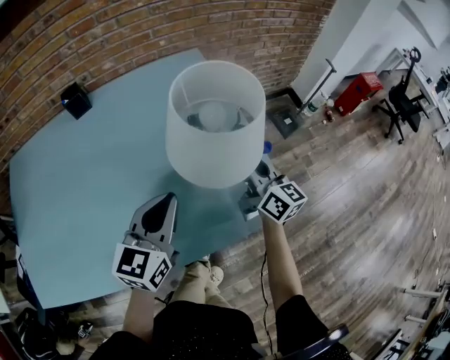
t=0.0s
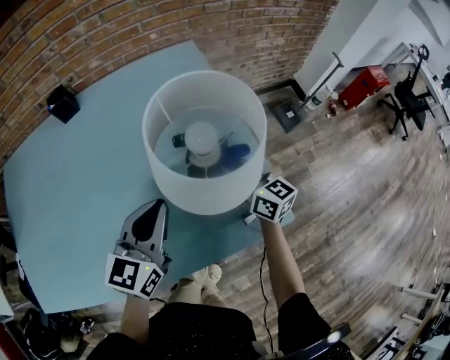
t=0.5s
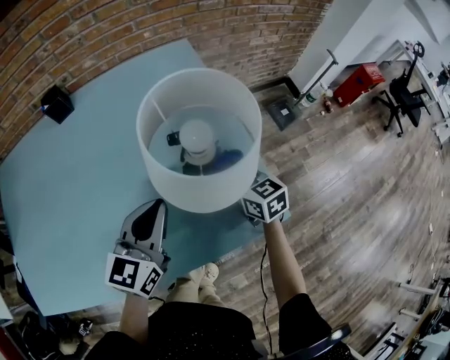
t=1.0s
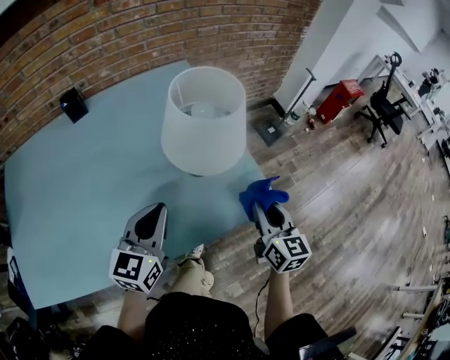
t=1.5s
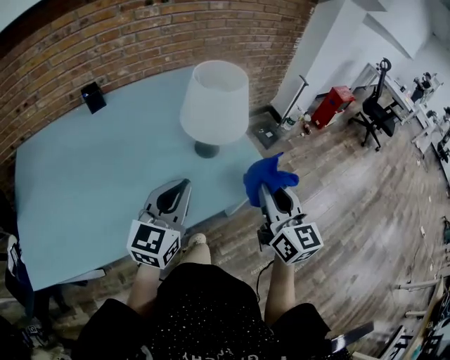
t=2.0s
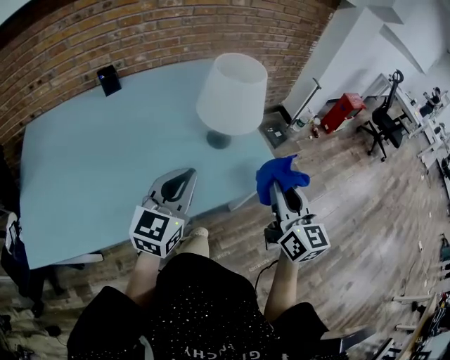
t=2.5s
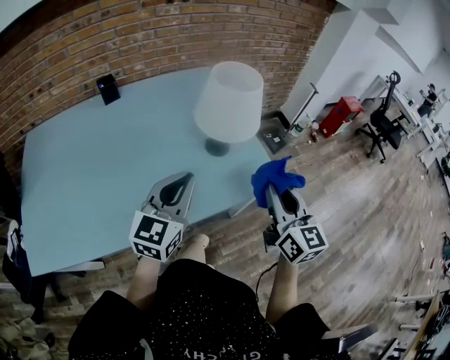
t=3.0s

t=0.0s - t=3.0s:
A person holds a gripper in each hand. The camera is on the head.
t=0.0s - t=1.5s: The right gripper goes approximately 15 cm backward, and swivels some 30 degrees. The left gripper changes place by some 5 cm.
t=1.5s - t=3.0s: The right gripper heads upward and backward, covering about 15 cm. Meanwhile the left gripper shifts roughly 10 cm backward and upward.

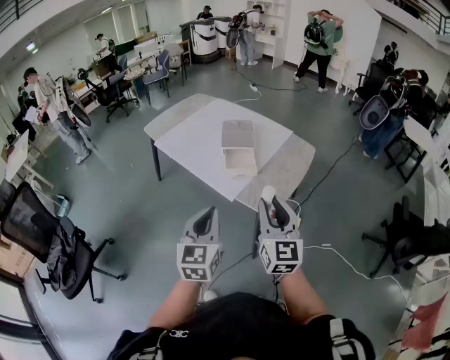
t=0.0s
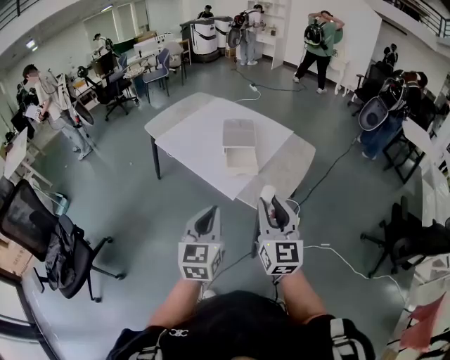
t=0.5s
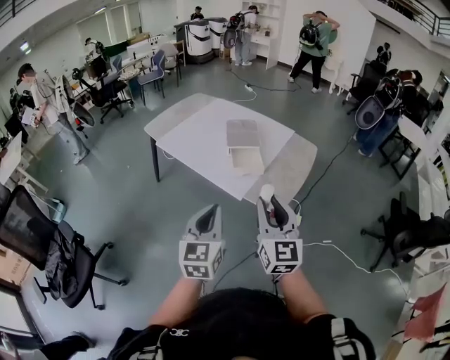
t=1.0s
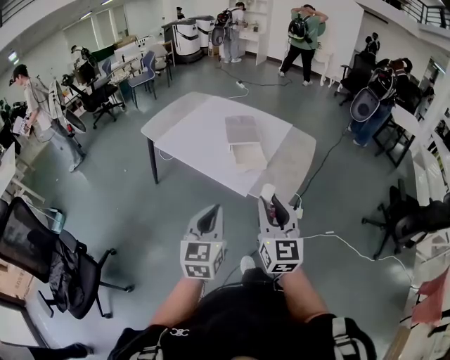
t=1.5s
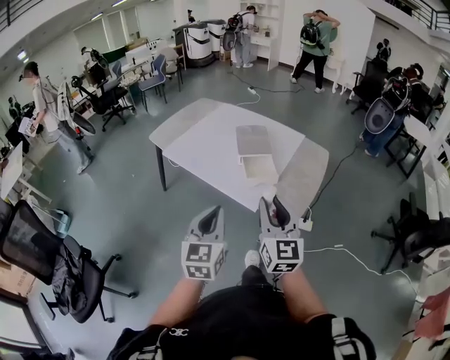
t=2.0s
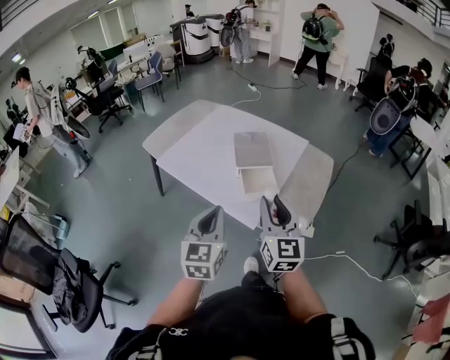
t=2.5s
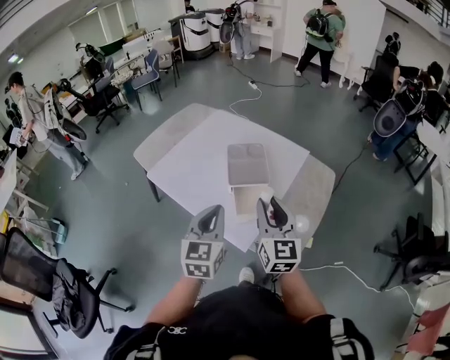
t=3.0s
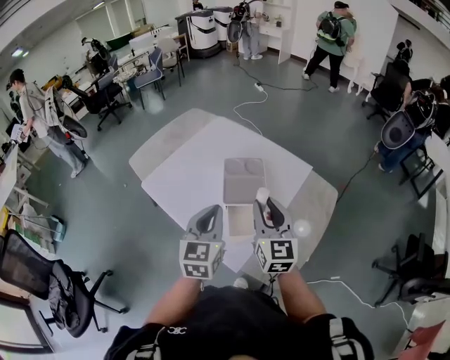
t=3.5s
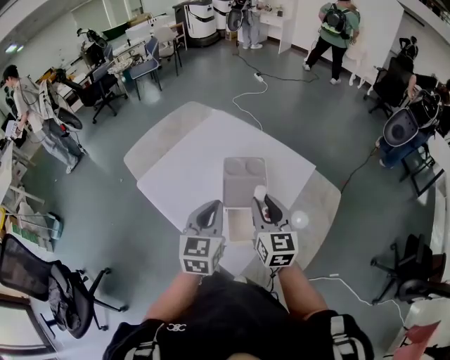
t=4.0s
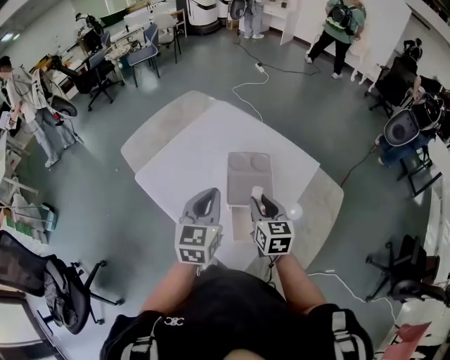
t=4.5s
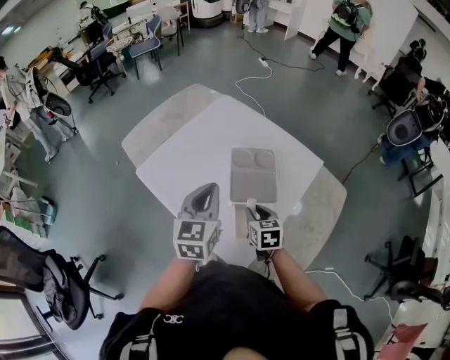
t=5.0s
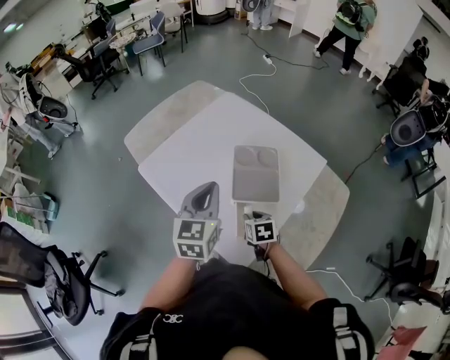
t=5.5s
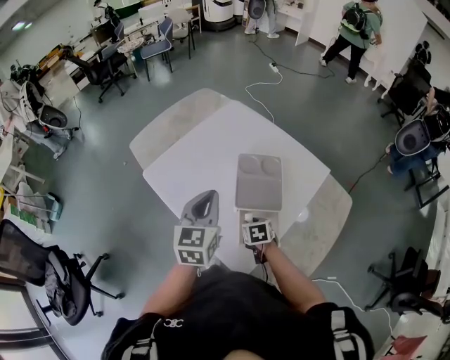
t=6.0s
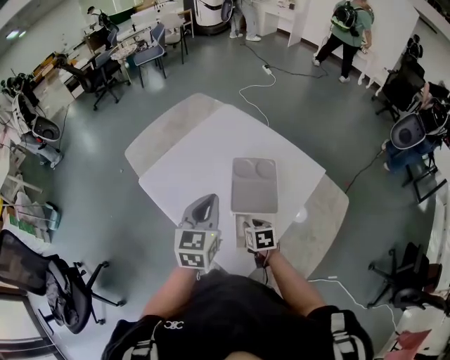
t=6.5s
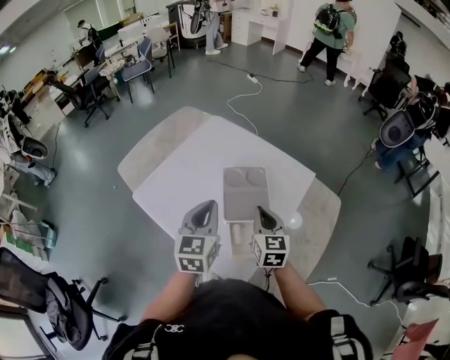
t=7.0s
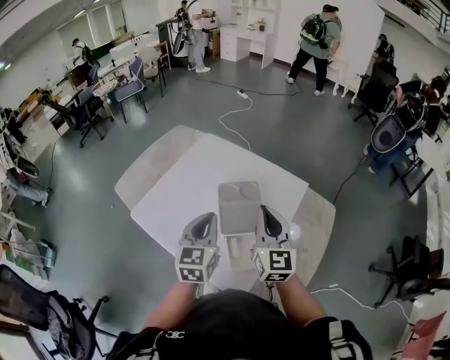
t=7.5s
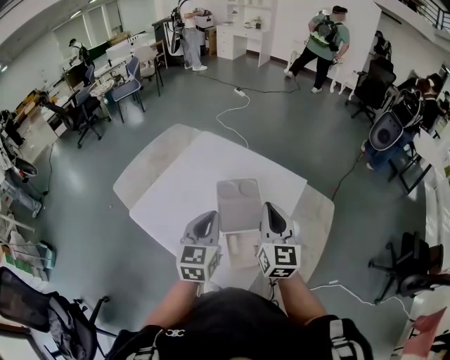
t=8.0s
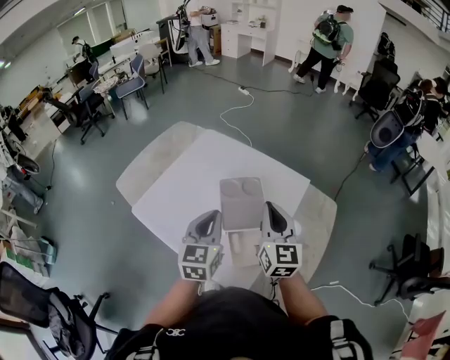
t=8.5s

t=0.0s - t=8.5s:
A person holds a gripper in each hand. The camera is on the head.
t=0.0s - t=2.0s: The two grippers go approximately 15 cm to the left and forward.
t=2.0s - t=4.0s: The two grippers travel together, forward, some 40 cm.
t=4.0s - t=6.5s: The left gripper goes some 5 cm forward; the right gripper moves downward, roughly 25 cm, and tilts its fingers about 40 degrees downward.
t=6.5s - t=8.5s: The right gripper travels upward by some 30 cm, tips its fingers upward by about 50 degrees, and closes.

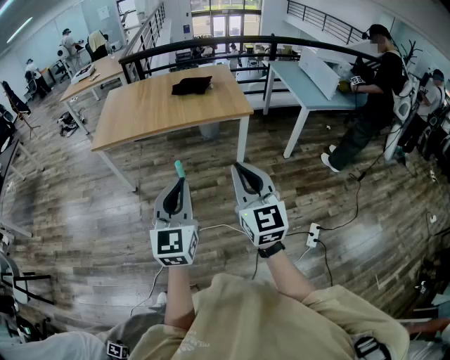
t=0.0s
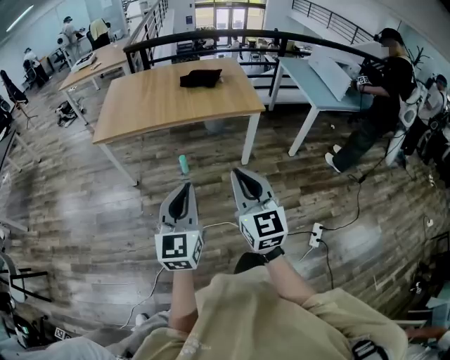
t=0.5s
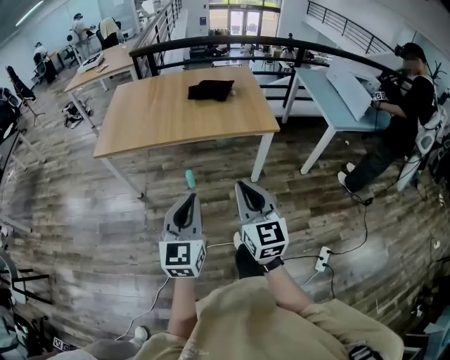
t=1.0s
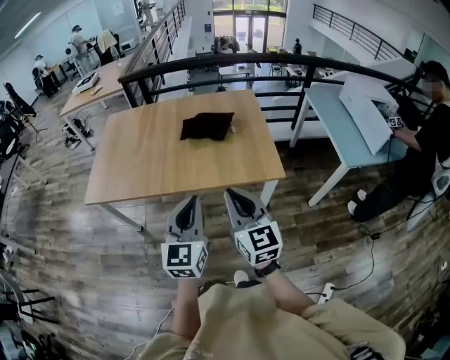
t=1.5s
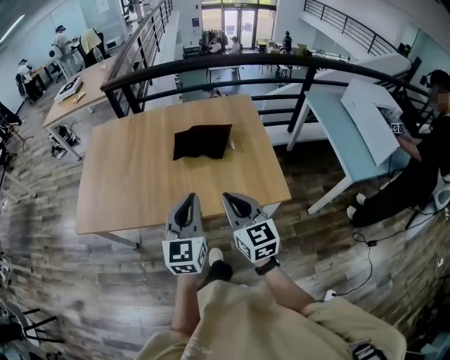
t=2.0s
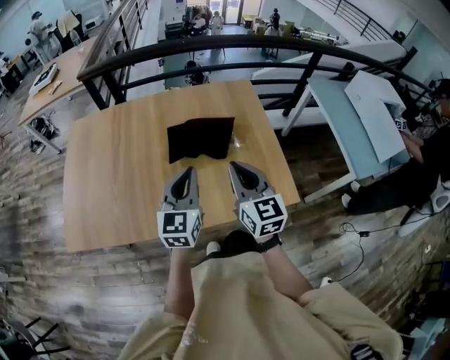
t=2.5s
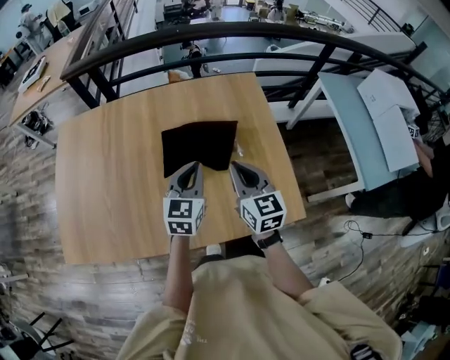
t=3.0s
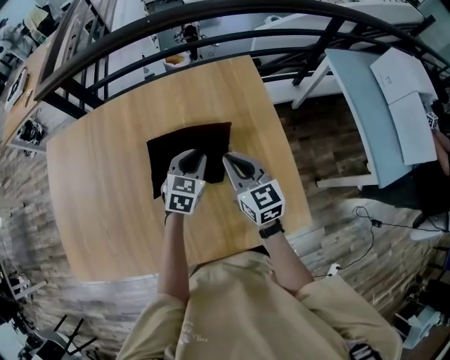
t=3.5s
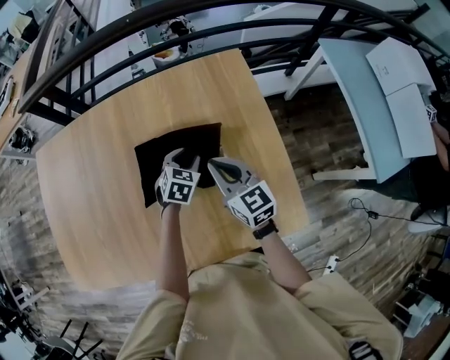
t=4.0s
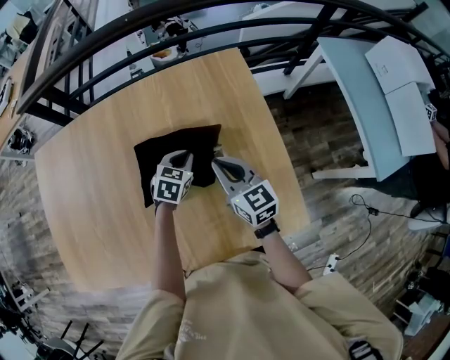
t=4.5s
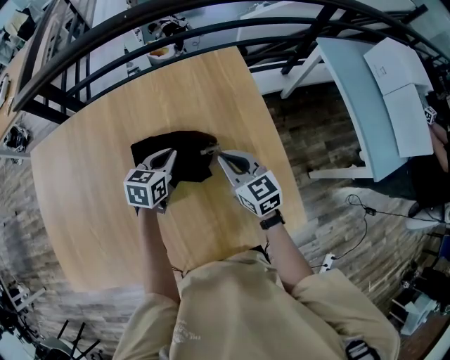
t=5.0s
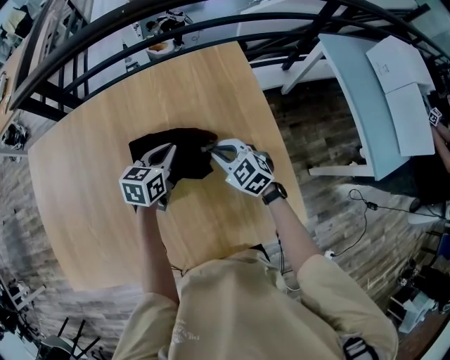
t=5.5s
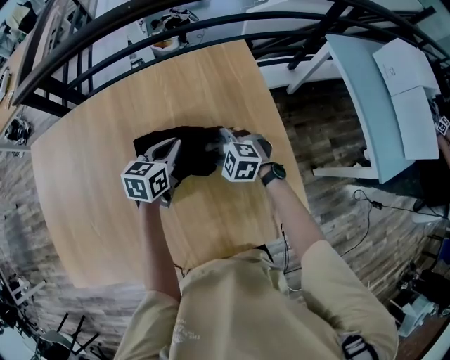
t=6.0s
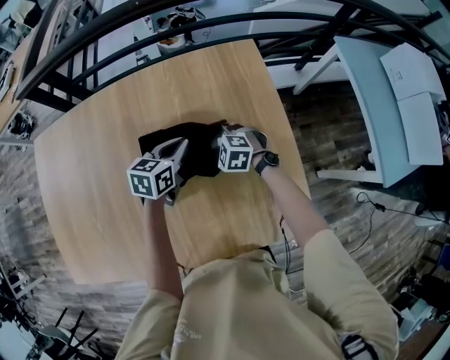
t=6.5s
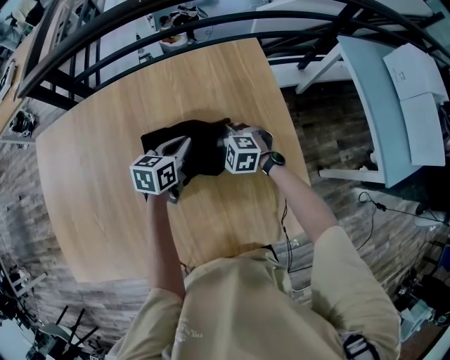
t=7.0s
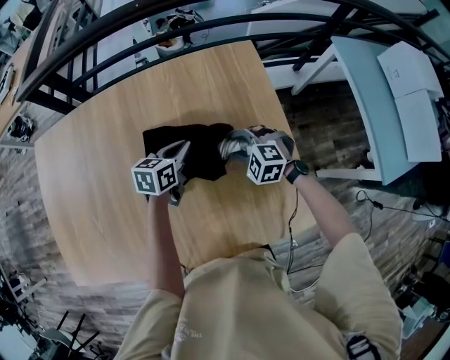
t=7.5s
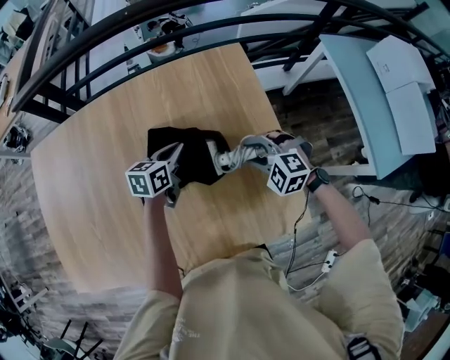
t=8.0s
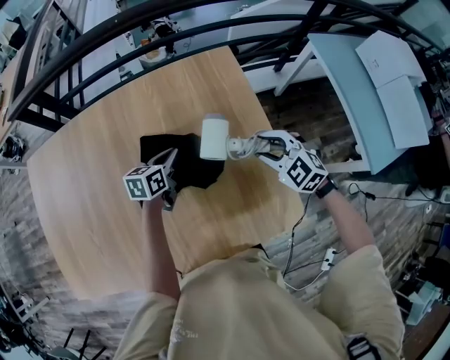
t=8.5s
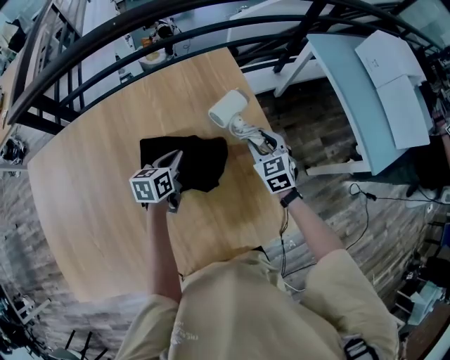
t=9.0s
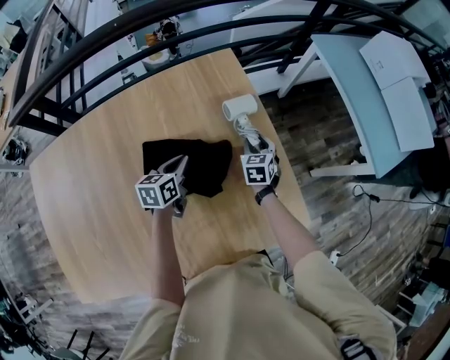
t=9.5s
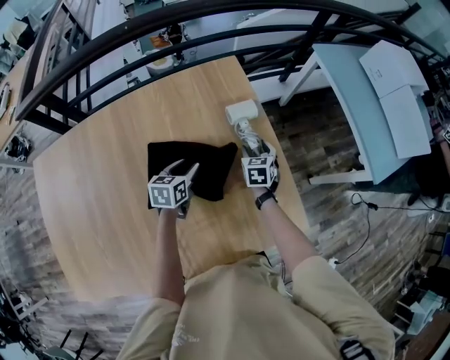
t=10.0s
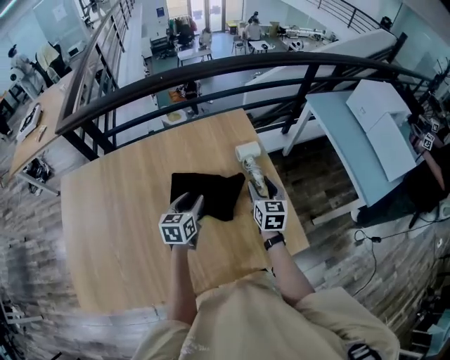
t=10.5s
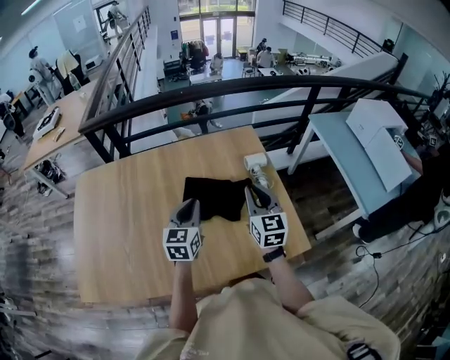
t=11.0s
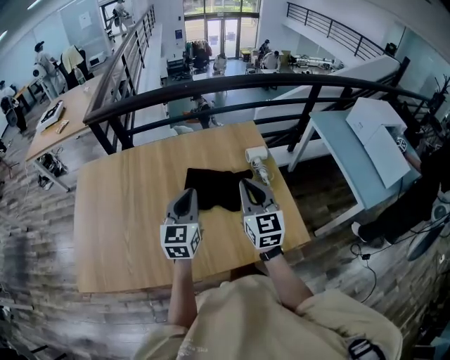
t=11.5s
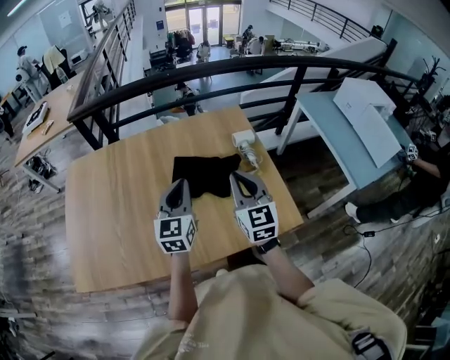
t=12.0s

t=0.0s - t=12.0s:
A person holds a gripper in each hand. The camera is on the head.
t=0.0s - t=2.0s: The pair of grippers is taken forward, about 70 cm.
t=2.0s - t=4.0s: The pair of grippers is taken forward, about 50 cm. The left gripper heads downward, covering some 30 cm, tips its fingers downward by about 50 degrees, and opens.
t=4.0s - t=6.0s: The right gripper moves downward, about 15 cm, tilts its fingers approximately 40 degrees downward, and opens its fingers; the left gripper moves upward, about 5 cm, turns by approximately 30 degrees, and closes up.
t=6.0s - t=8.0s: The right gripper is displaced to the right, upward and backward by some 15 cm.
t=8.0s - t=10.0s: The left gripper ends up roughly 5 cm from where it was, and opens its fingers. Meanwhile the right gripper moves roughly 15 cm, and rolls clockwise, seen from behind, by about 70 degrees.
t=10.0s - t=12.0s: The left gripper heads upward and backward, covering some 35 cm, tilts its fingers about 30 degrees upward, and closes its fingers, while the right gripper heads upward, backward and to the left, covering roughly 40 cm, tilts its fingers some 40 degrees upward, and closes up.

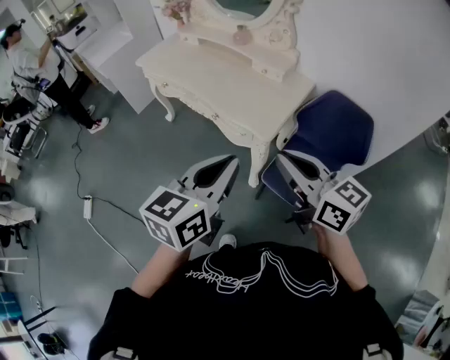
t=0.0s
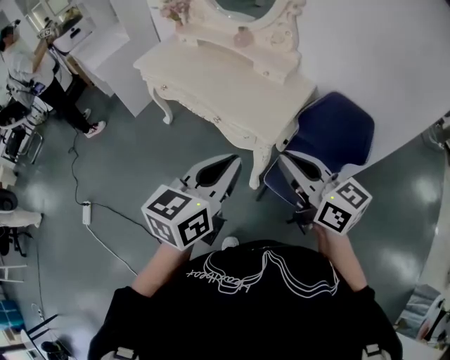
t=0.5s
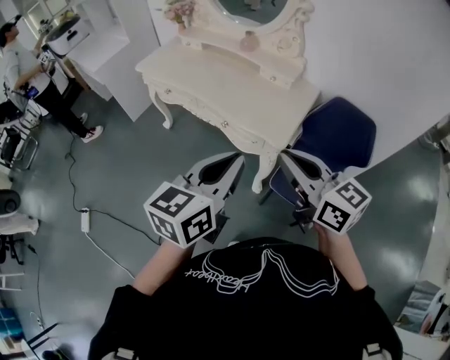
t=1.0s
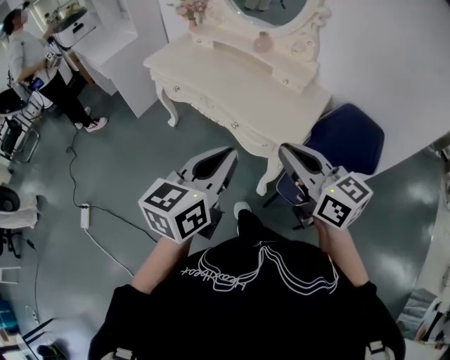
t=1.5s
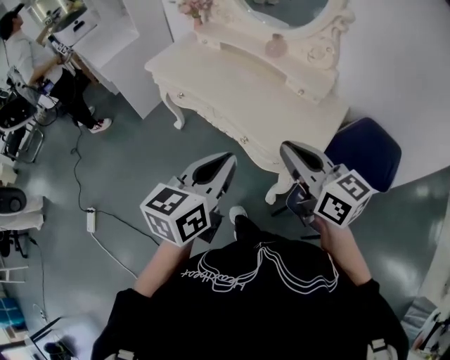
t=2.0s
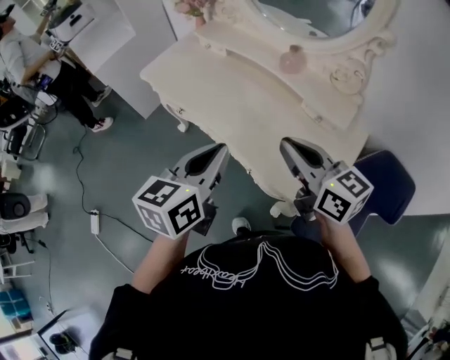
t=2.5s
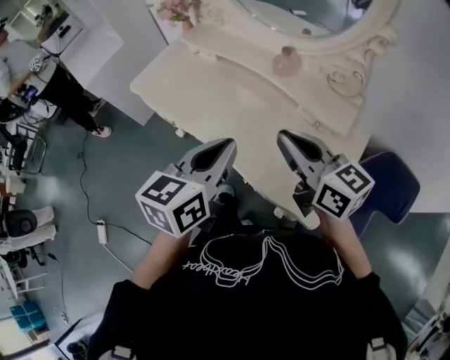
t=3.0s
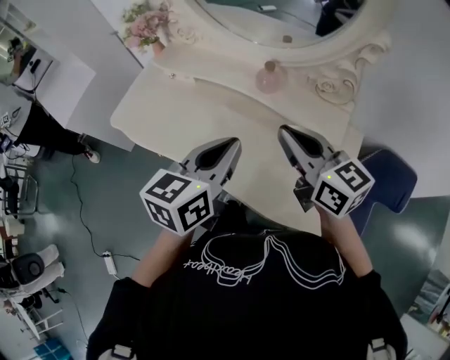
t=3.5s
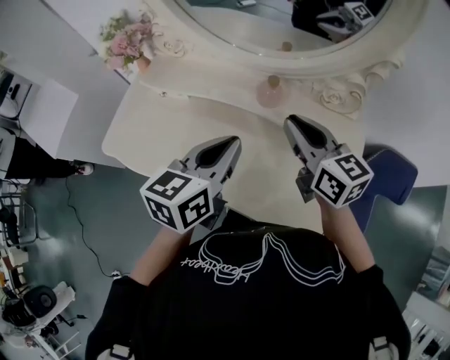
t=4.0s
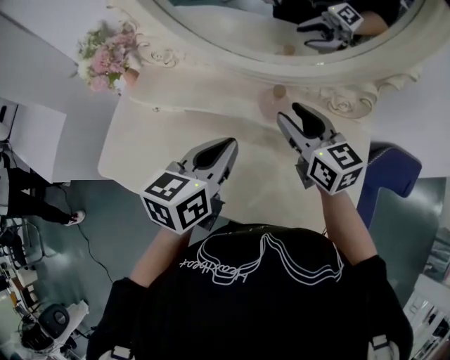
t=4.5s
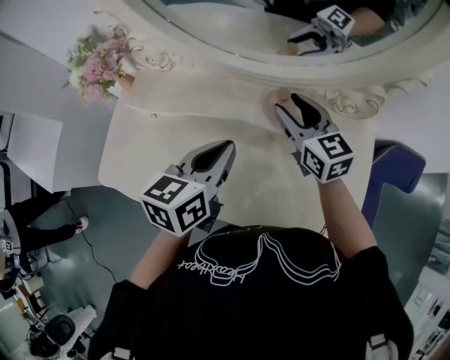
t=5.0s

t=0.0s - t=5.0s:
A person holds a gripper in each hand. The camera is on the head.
t=0.0s - t=2.5s: The right gripper heads forward, covering about 40 cm; the left gripper heads forward and to the left, covering some 40 cm.
t=2.5s - t=5.0s: The right gripper changes place by roughly 35 cm, rotates roughly 40 degrees, and opens its fingers; the left gripper changes place by roughly 35 cm, and rotates approximately 30 degrees.
